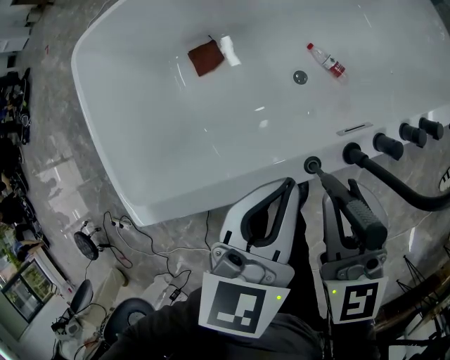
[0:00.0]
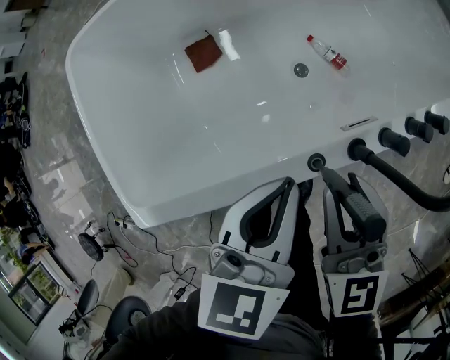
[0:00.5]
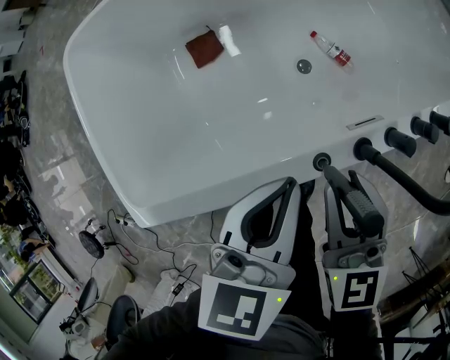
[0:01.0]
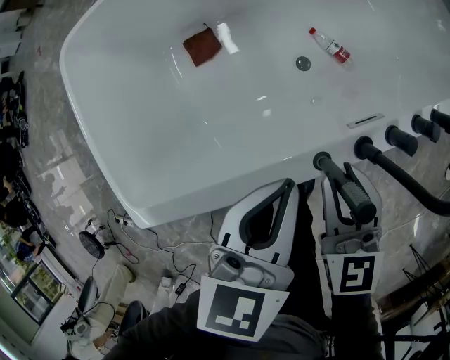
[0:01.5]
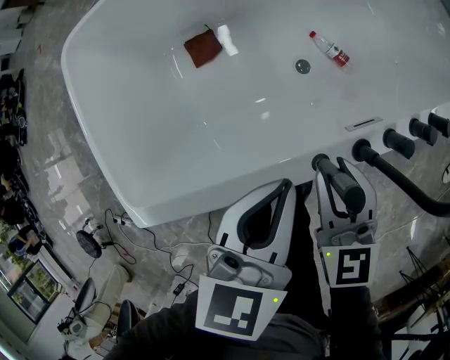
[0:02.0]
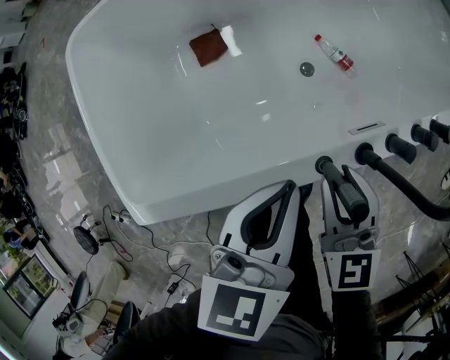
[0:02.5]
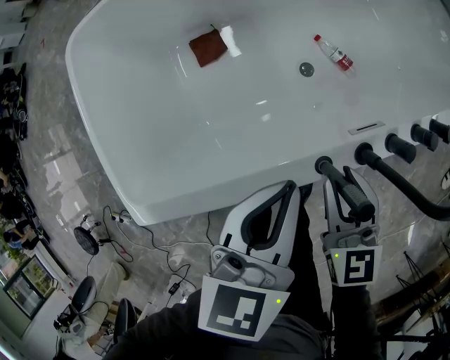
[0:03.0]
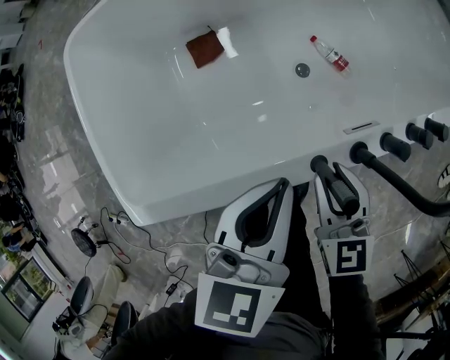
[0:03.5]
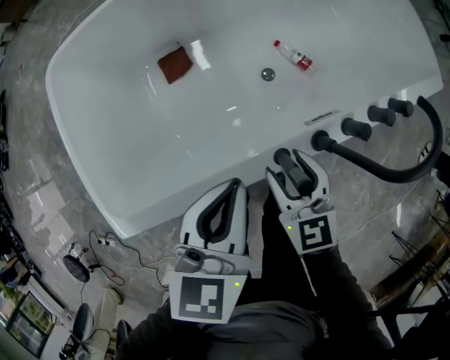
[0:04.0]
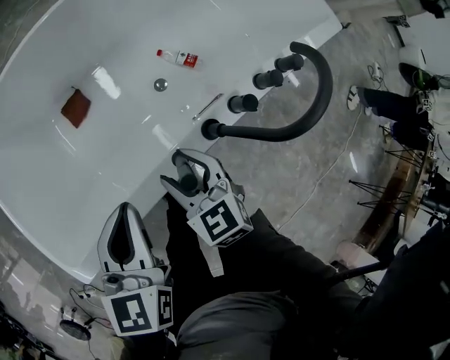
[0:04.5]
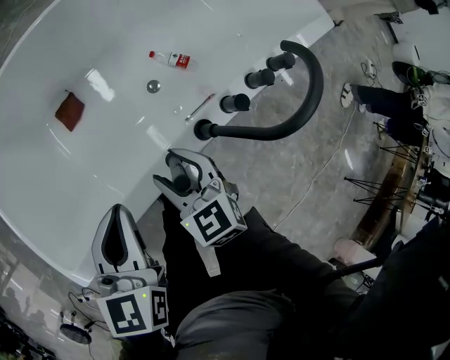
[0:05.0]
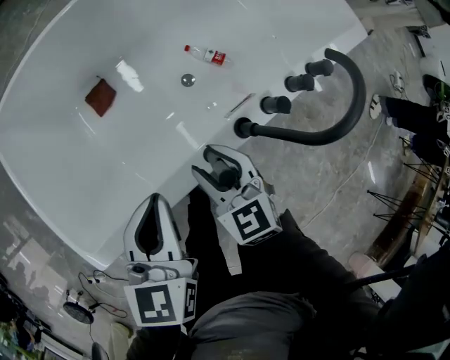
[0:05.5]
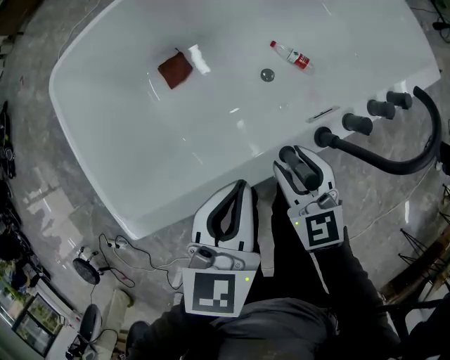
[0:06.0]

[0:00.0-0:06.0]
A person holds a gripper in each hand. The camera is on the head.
0:00.0 to 0:02.0: The right gripper goes about 10 cm downward.
0:02.0 to 0:04.0: The right gripper changes place by approximately 5 cm, and opens up.
0:04.0 to 0:06.0: The grippers stay close to where they were, moving slightly.

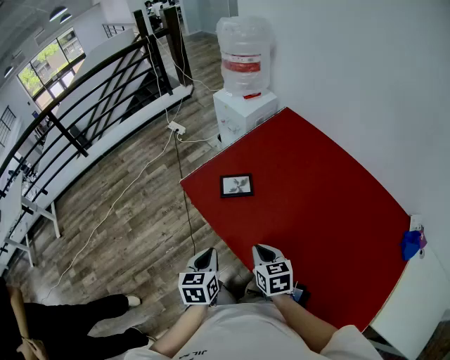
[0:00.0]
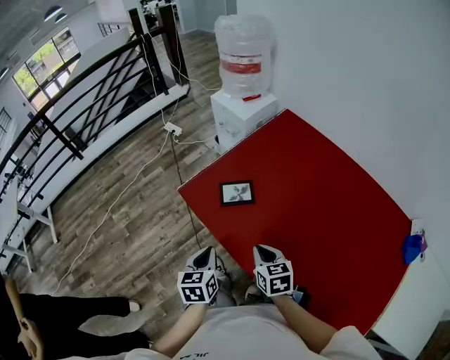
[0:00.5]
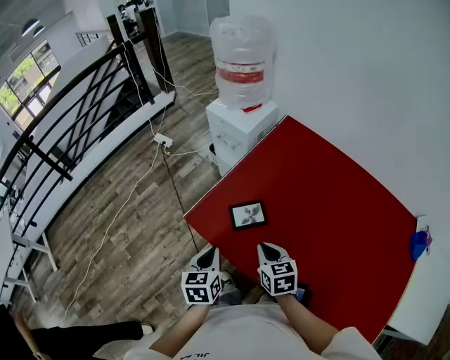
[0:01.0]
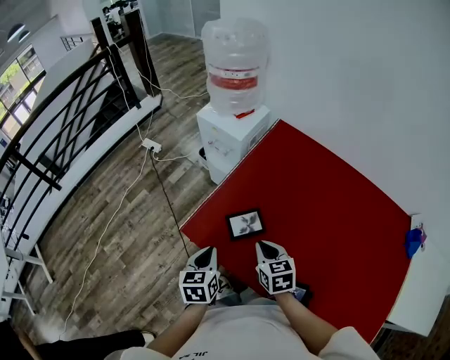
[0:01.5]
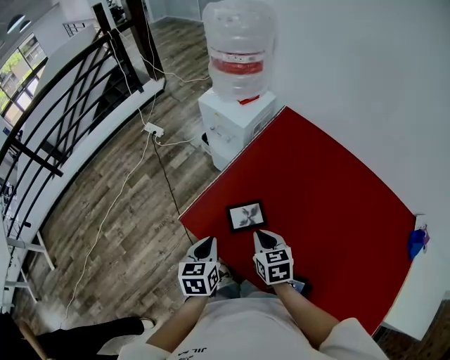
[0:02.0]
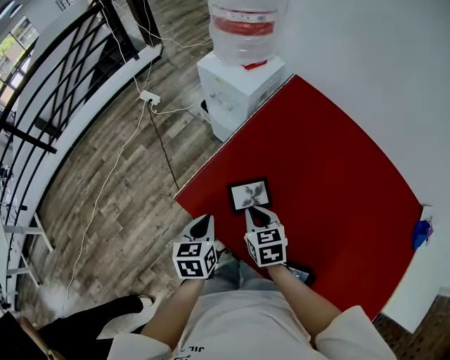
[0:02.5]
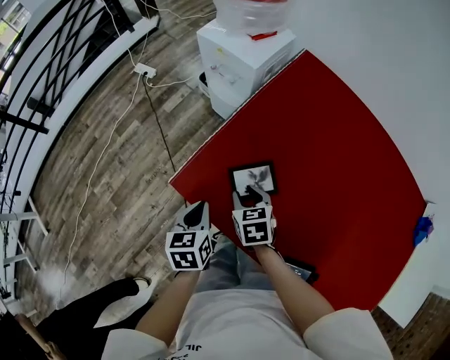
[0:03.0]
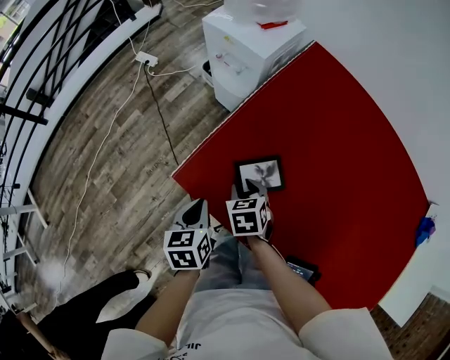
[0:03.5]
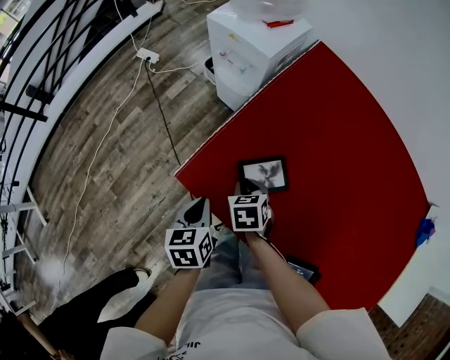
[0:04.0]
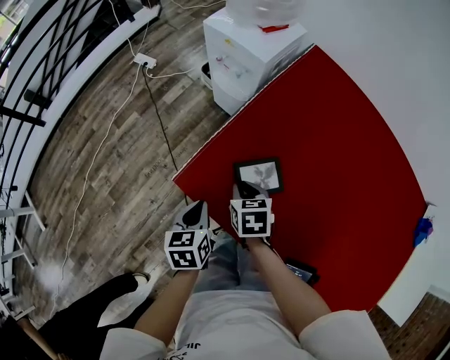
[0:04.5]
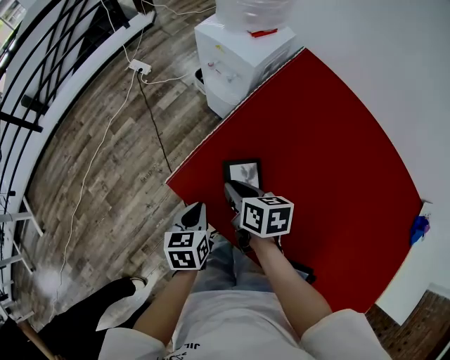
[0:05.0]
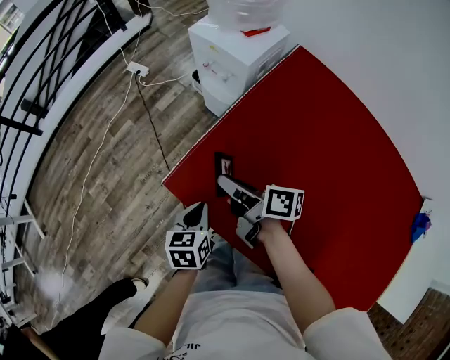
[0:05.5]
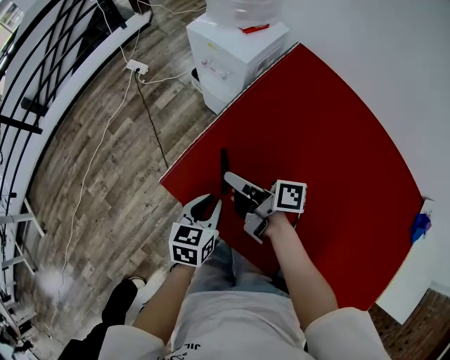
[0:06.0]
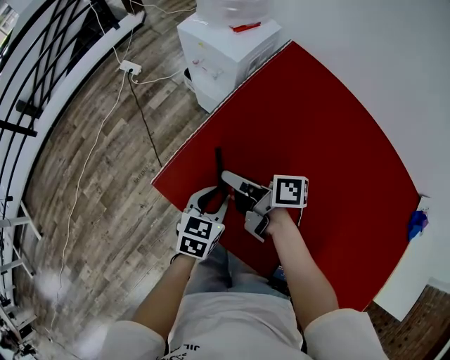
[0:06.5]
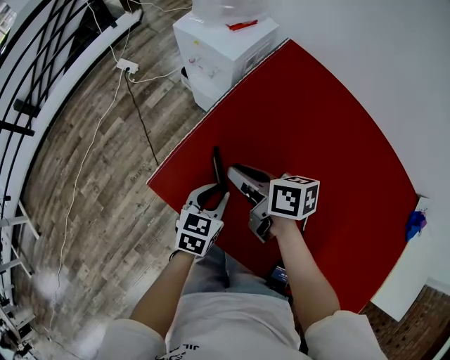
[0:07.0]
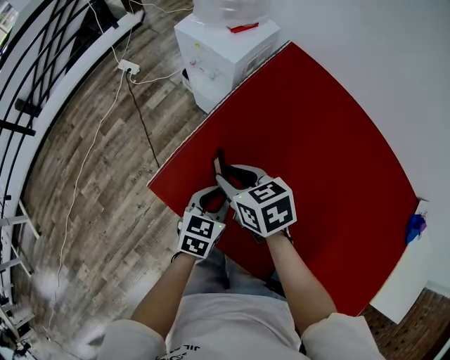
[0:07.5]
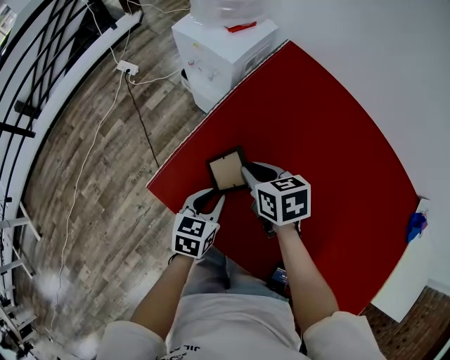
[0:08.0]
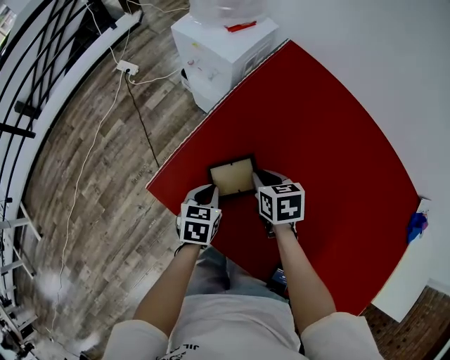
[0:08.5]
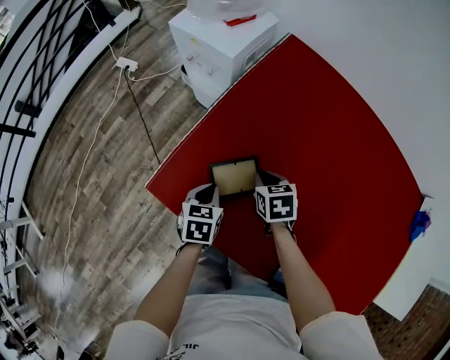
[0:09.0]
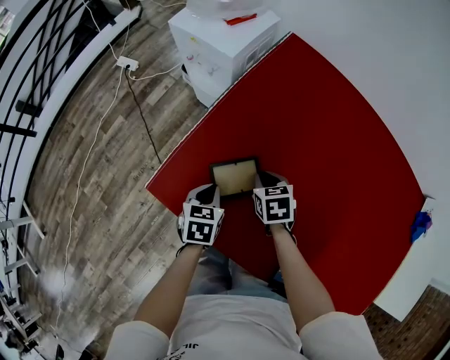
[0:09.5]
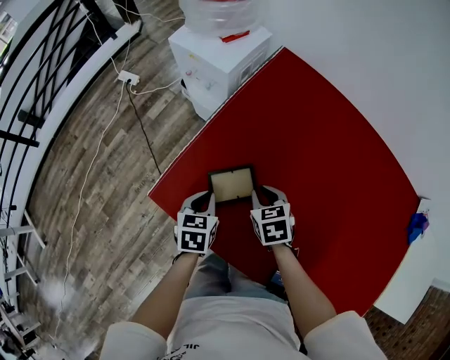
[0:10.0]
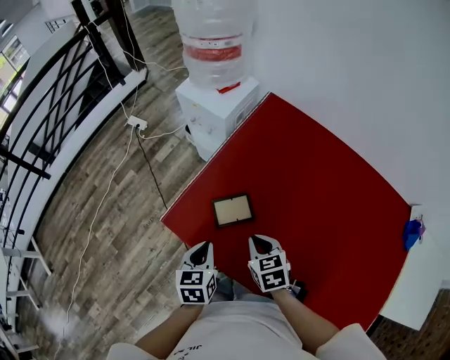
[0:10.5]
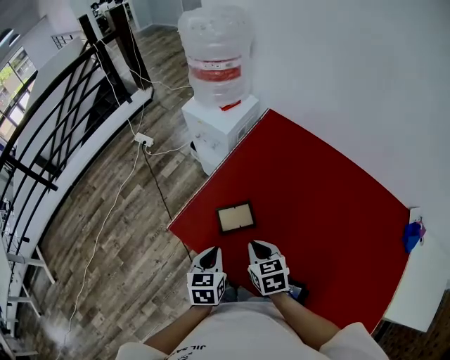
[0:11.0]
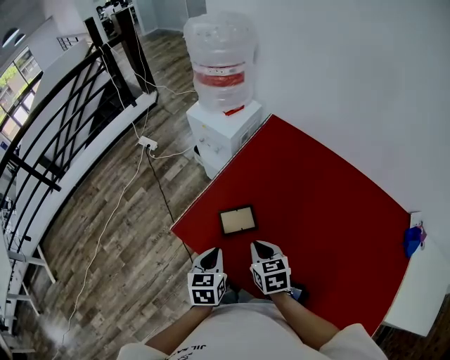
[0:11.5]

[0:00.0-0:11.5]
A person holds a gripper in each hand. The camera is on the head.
0:00.0 to 0:02.0: The two grippers go some 25 cm forward.
0:02.0 to 0:04.0: The right gripper shifts approximately 20 cm downward, to the left and forward; the left gripper moves downward and to the left, some 10 cm.
0:04.0 to 0:06.0: The left gripper is displaced to the right by roughly 10 cm; the right gripper travels upward by approximately 15 cm, and angles its fingers upward, by some 50 degrees.
0:06.0 to 0:07.5: The right gripper angles its fingers downward, by approximately 40 degrees, while the left gripper heads to the right, covering some 5 cm.
0:07.5 to 0:09.5: The left gripper heads downward, covering approximately 5 cm, and closes, while the right gripper shifts about 20 cm downward and to the right, and turns by about 30 degrees.
0:09.5 to 0:11.5: The two grippers go roughly 20 cm upward and backward.

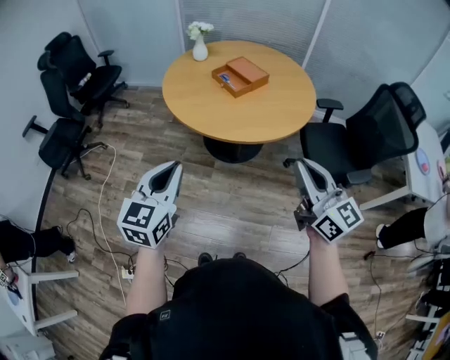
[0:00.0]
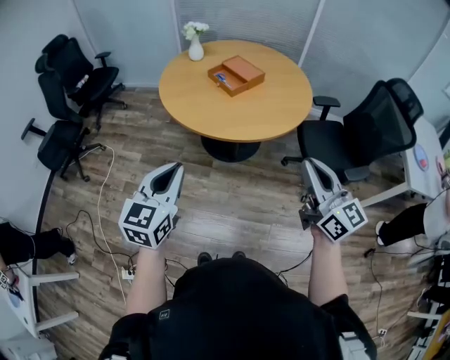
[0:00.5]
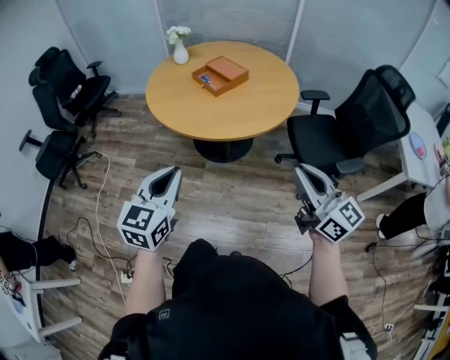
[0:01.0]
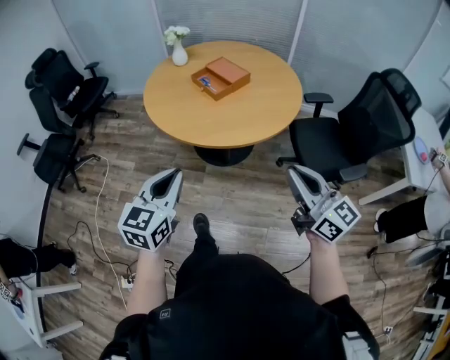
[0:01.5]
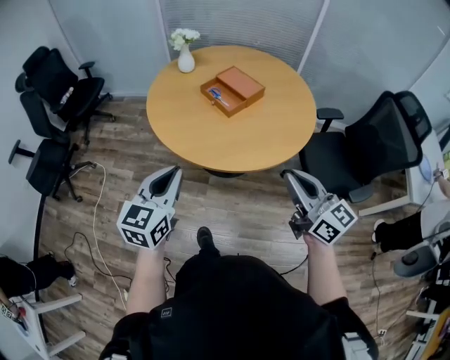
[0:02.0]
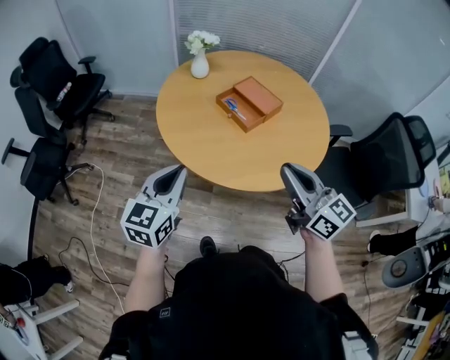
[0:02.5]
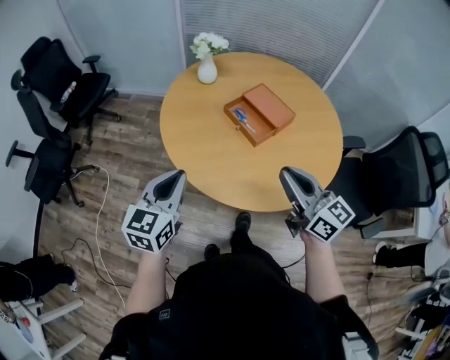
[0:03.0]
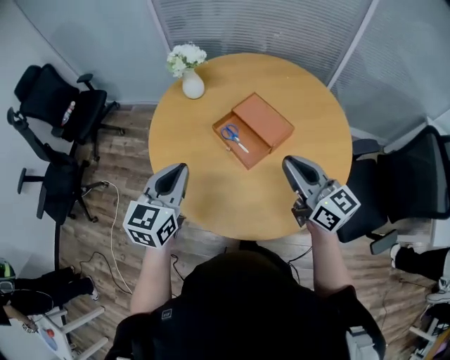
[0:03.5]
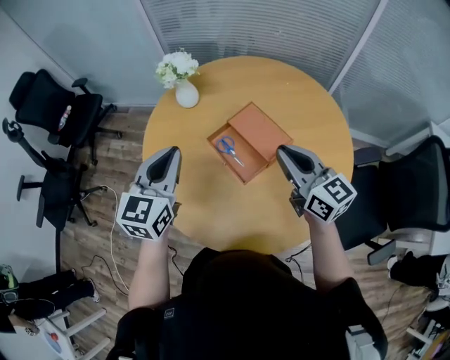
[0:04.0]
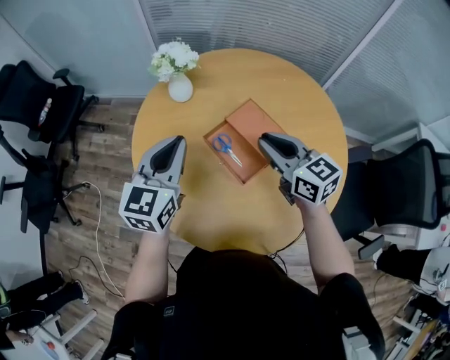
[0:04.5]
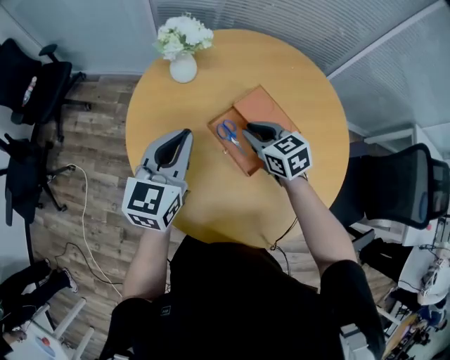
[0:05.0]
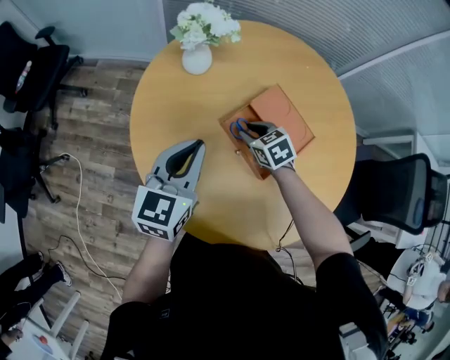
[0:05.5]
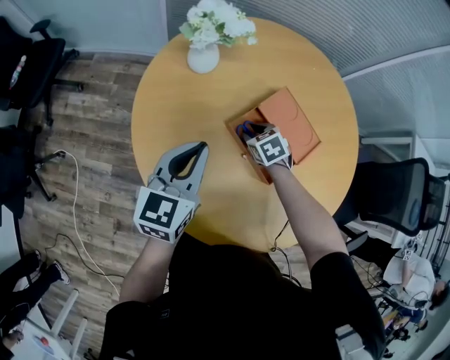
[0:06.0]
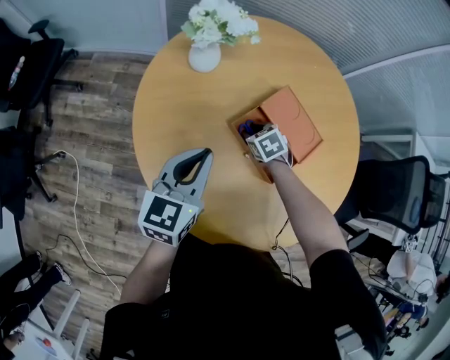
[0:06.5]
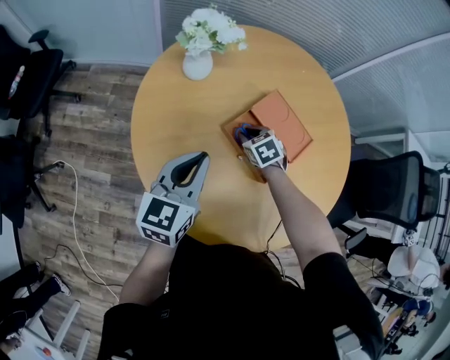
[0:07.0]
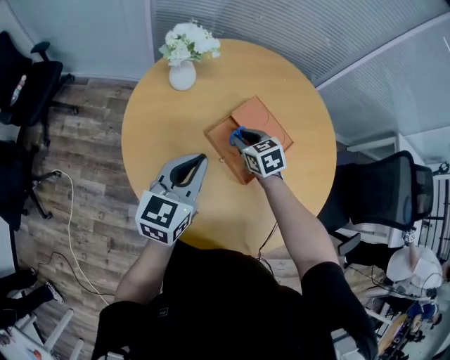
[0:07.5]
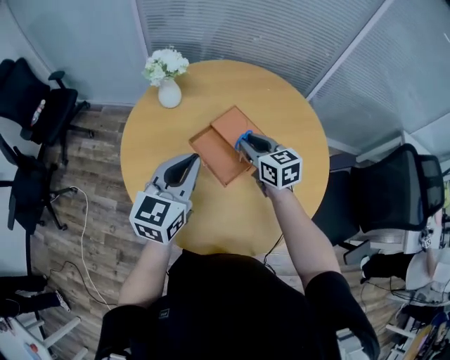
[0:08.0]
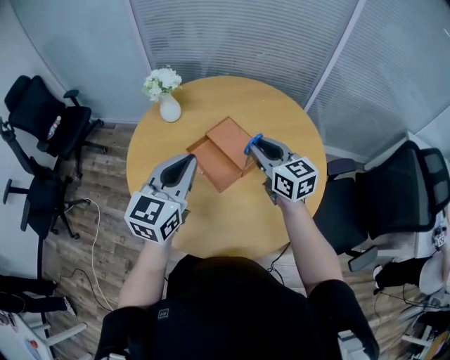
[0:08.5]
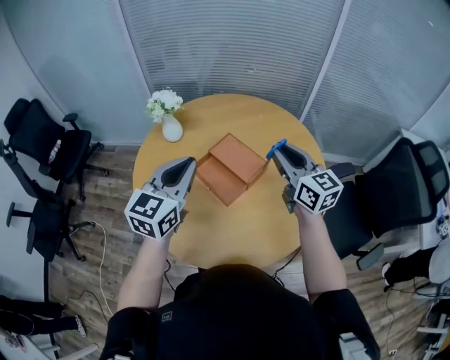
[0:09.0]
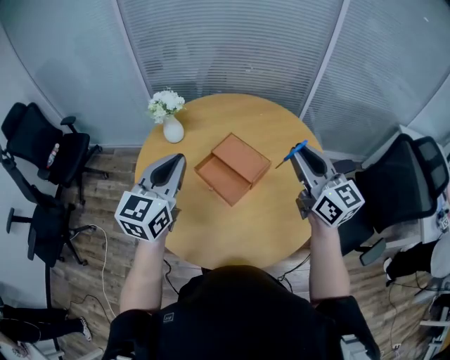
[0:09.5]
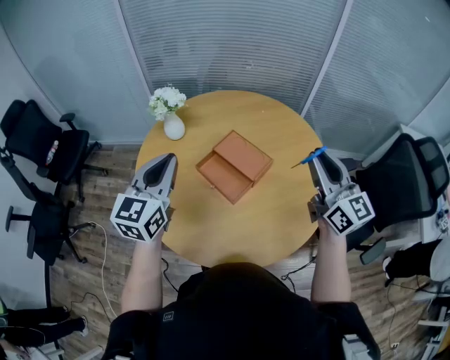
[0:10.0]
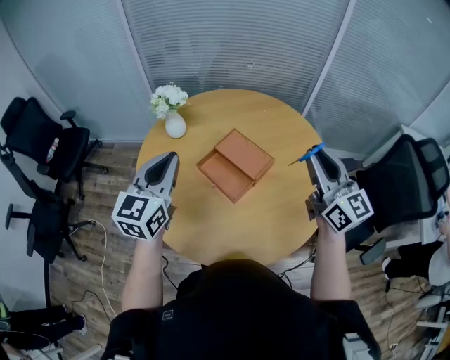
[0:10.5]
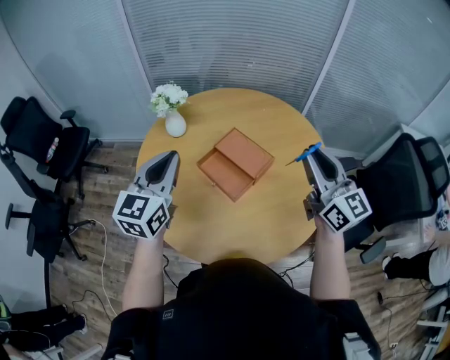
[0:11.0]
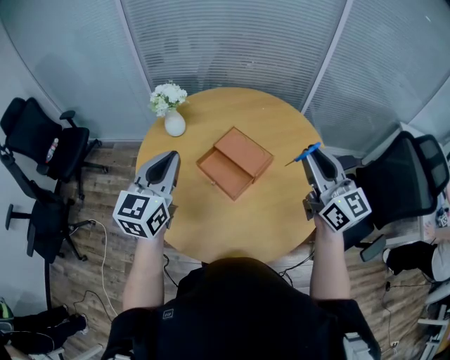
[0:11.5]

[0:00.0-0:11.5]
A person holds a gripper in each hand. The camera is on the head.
0:00.0 to 0:02.0: Both grippers move forward, some 15 cm.
0:02.0 to 0:04.0: The two grippers travel together, forward, approximately 50 cm.
0:04.0 to 0:06.0: The left gripper is displaced downward, forward and to the left by about 20 cm, while the right gripper moves downward, forward and to the left, roughly 40 cm, tips its fingers downward by approximately 60 degrees, and opens.
0:06.0 to 0:07.5: The left gripper goes approximately 5 cm to the right, while the right gripper is displaced upward by some 10 cm.
0:07.5 to 0:09.5: The right gripper travels upward, to the right and backward by some 40 cm, and tips its fingers upward by roughly 50 degrees, while the left gripper travels upward and to the right by approximately 15 cm.
0:09.5 to 0:11.5: The grippers make only small movements.
